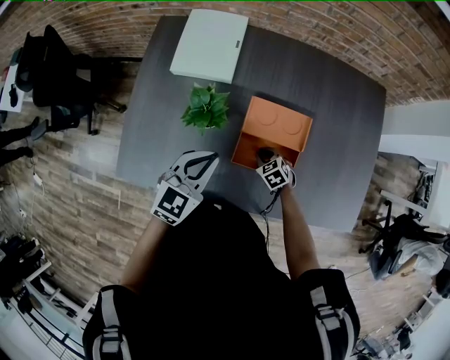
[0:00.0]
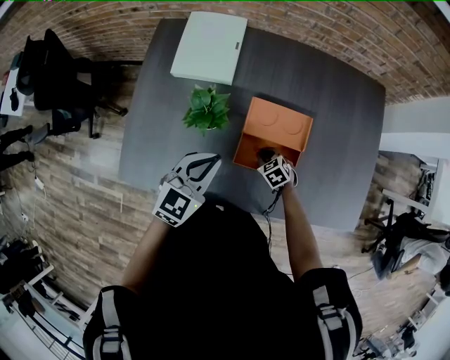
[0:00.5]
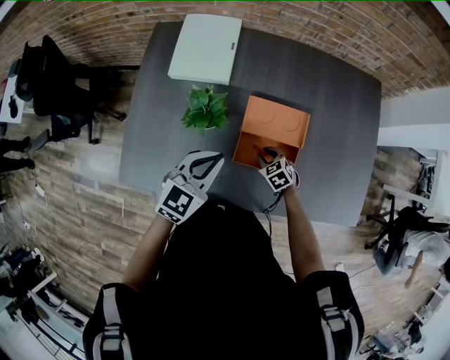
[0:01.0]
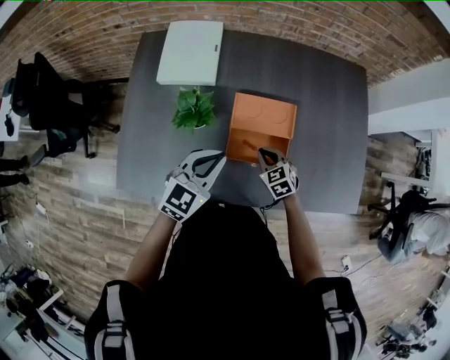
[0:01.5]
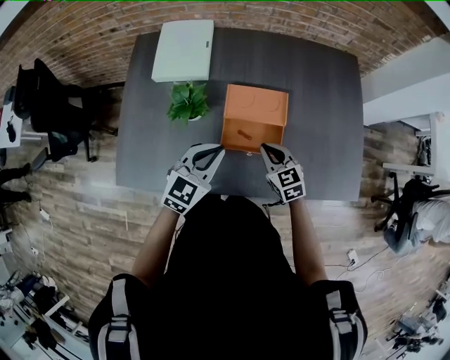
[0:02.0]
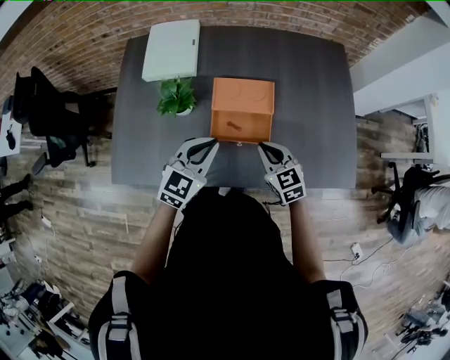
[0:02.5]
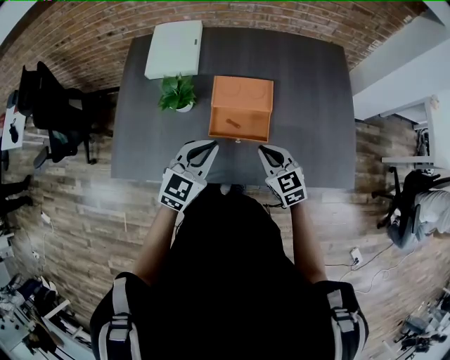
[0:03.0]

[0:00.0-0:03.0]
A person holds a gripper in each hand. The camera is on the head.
0:00.0 to 0:01.5: The left gripper changes place by some 5 cm; the right gripper goes approximately 10 cm upward.
0:01.5 to 0:03.0: The right gripper goes some 15 cm backward, upward and to the right, while the left gripper heads backward and to the right, covering roughly 10 cm.

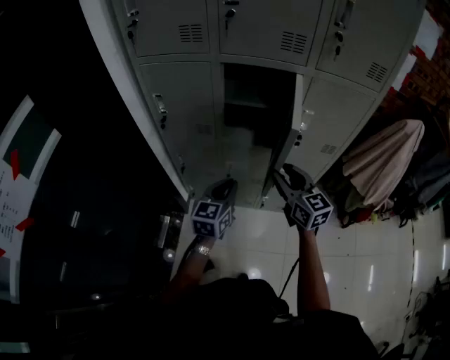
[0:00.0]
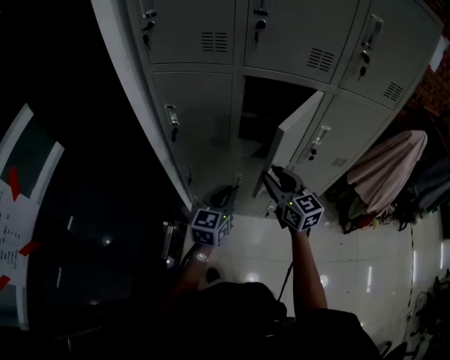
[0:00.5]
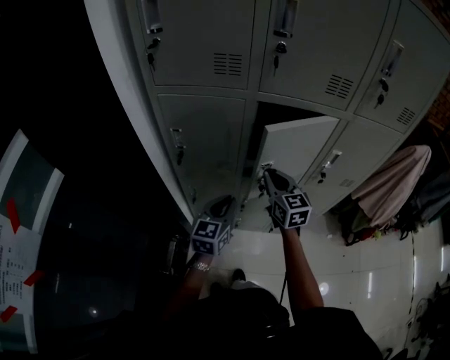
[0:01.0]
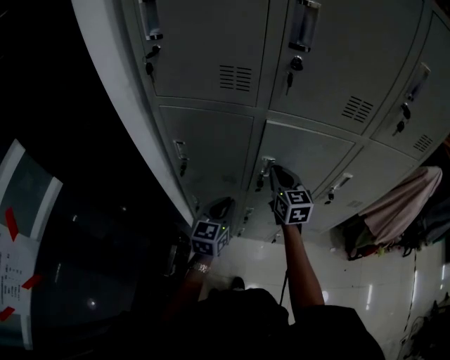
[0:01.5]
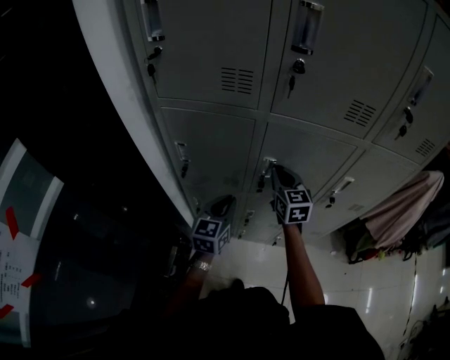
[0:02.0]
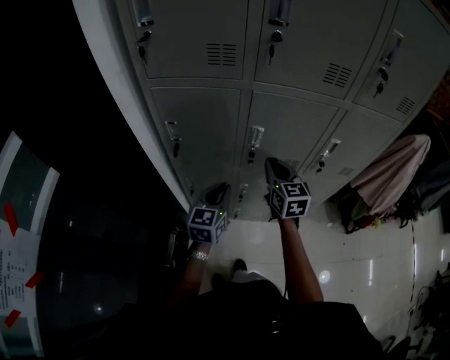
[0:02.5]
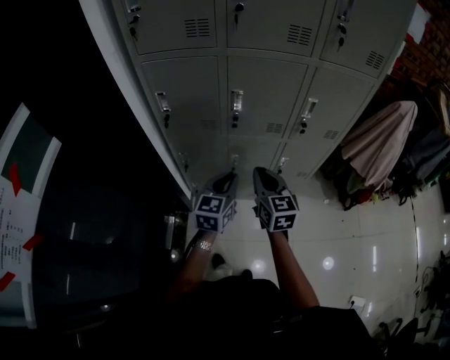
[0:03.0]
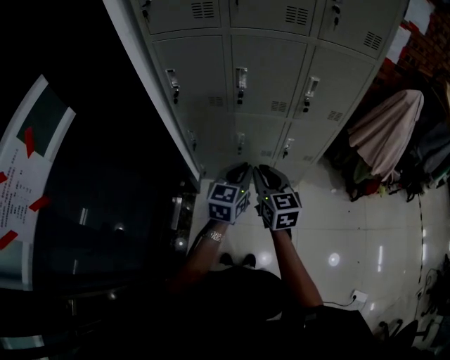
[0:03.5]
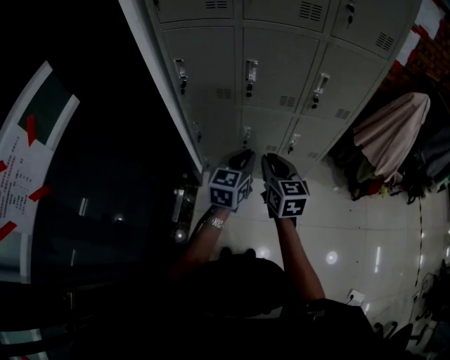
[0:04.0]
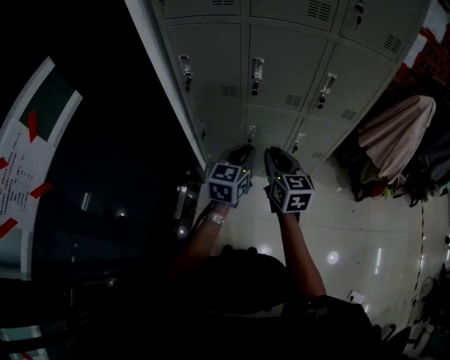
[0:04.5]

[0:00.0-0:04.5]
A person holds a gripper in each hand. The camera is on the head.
0:00.0 to 0:02.0: The grippers both shift forward and to the left by some 25 cm. The right gripper closes up.
0:02.0 to 0:04.5: The right gripper goes roughly 35 cm backward, while the left gripper travels backward and to the right by some 25 cm.

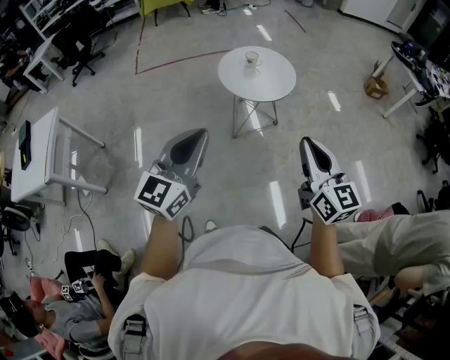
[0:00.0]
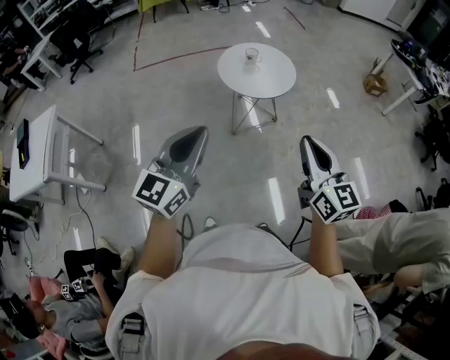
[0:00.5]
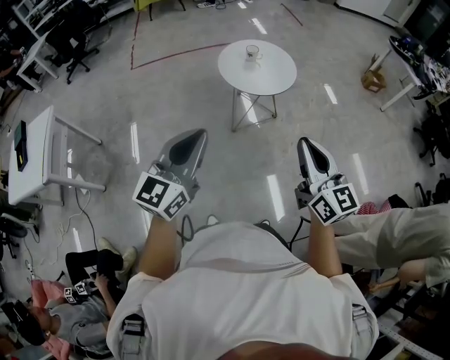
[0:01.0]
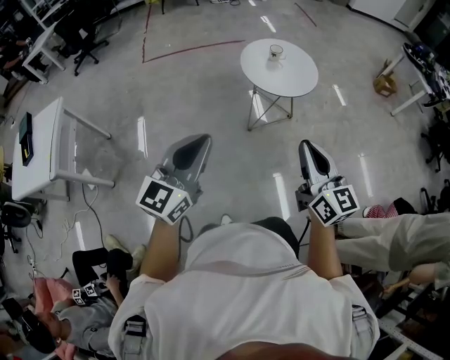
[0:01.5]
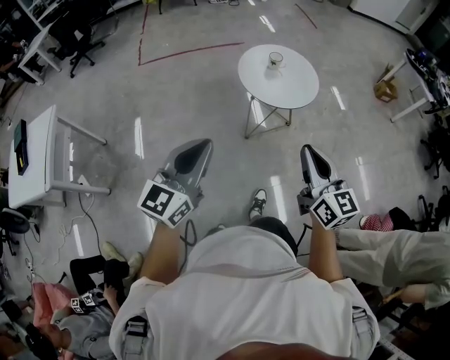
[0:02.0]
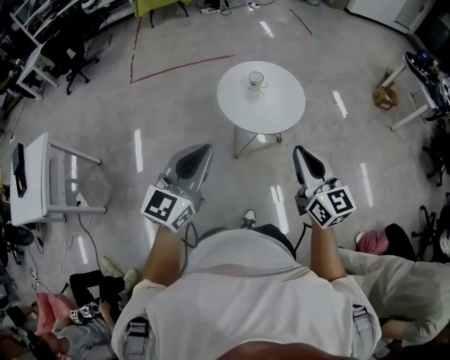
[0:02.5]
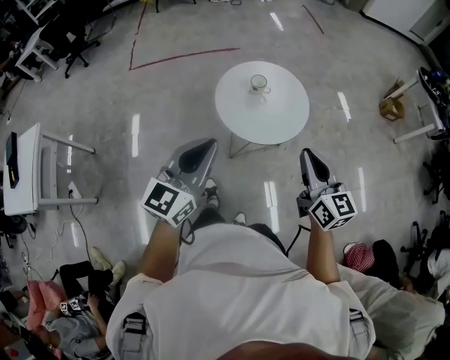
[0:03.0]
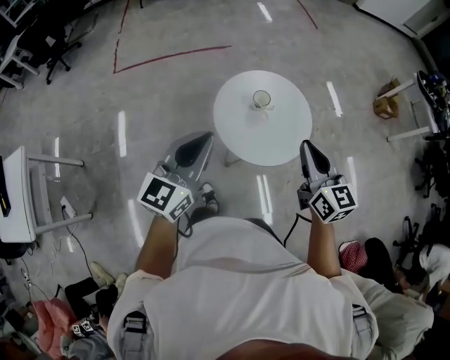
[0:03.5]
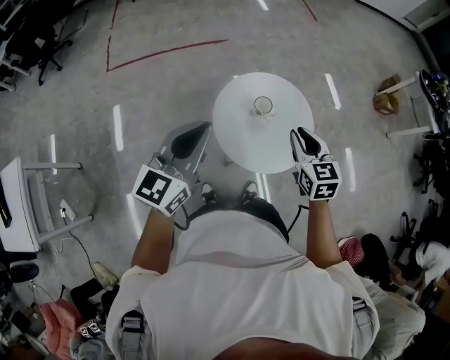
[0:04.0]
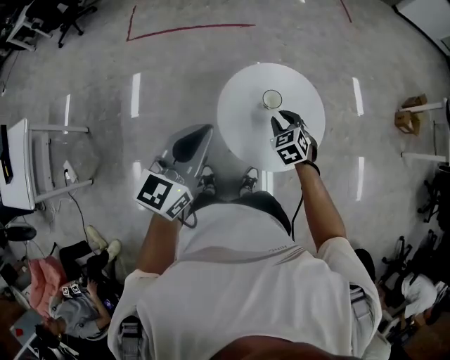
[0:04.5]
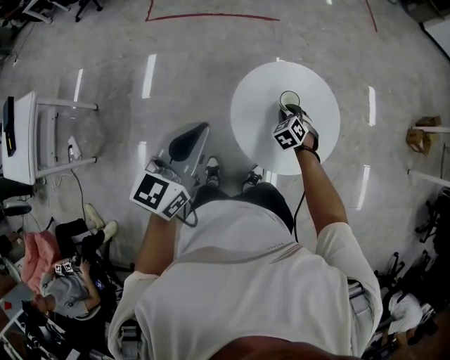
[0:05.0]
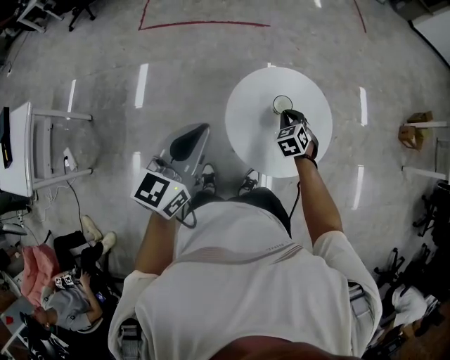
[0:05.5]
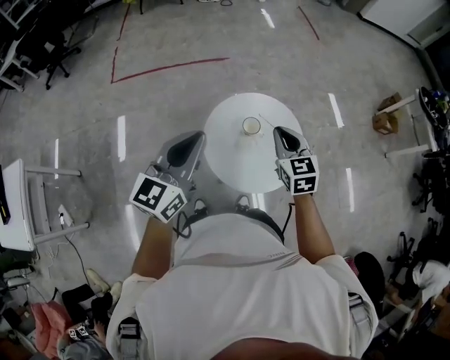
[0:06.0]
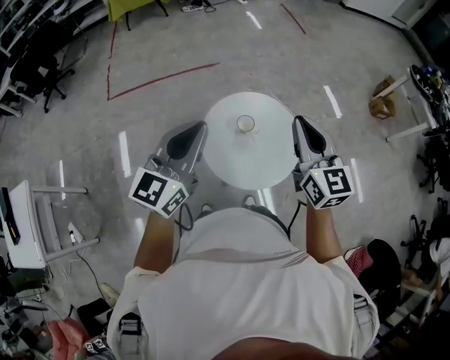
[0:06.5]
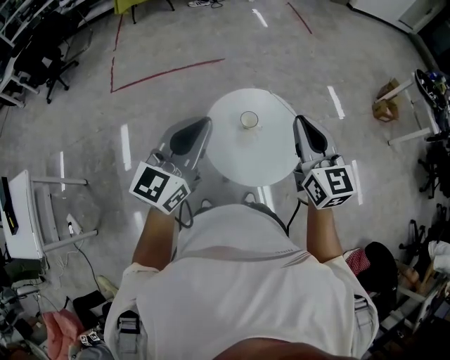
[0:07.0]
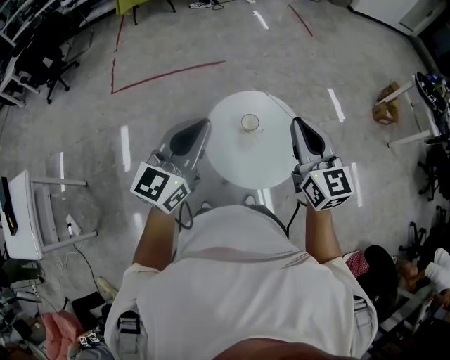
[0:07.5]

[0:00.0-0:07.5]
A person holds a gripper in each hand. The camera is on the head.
0:00.0 to 0:02.0: Both grippers move to the left and forward, approximately 20 cm.
0:02.0 to 0:04.0: The pair of grippers is taken forward, about 60 cm. The right gripper turns by some 30 degrees.
0:04.0 to 0:05.5: The left gripper travels downward by about 5 cm; the right gripper moves downward and forward, approximately 25 cm, and changes its angle by approximately 40 degrees.
0:05.5 to 0:07.5: The right gripper travels upward by some 35 cm, and points its fingers about 50 degrees further upward, while the left gripper travels upward and to the right by approximately 15 cm, and rotates some 20 degrees.

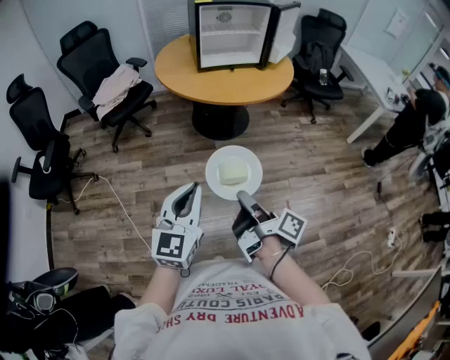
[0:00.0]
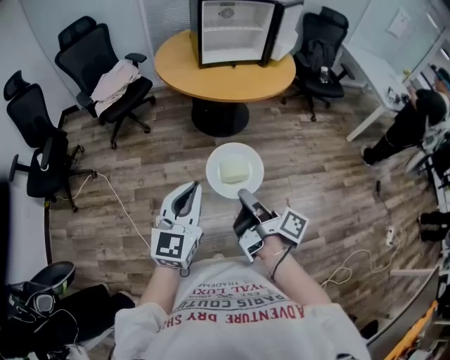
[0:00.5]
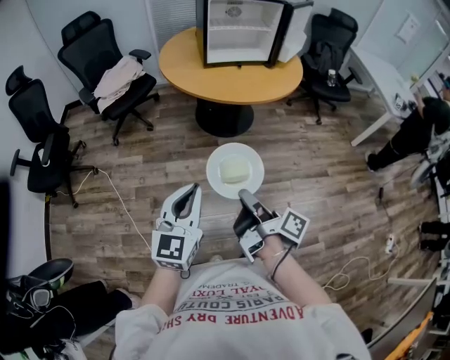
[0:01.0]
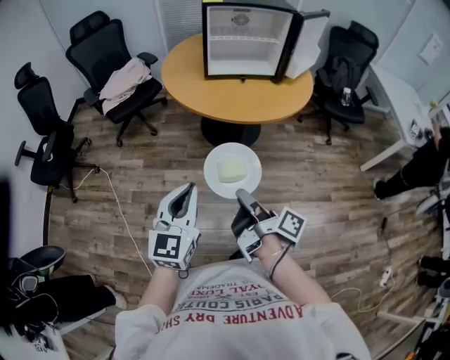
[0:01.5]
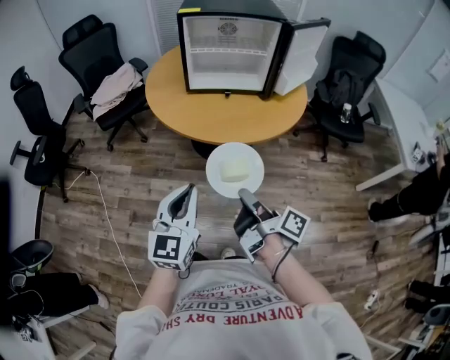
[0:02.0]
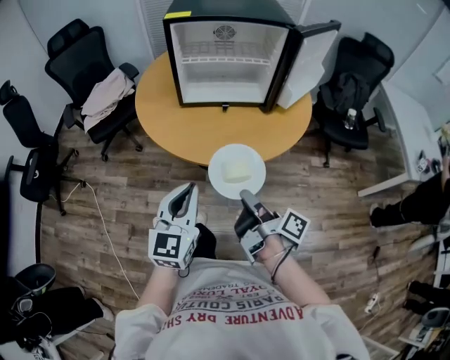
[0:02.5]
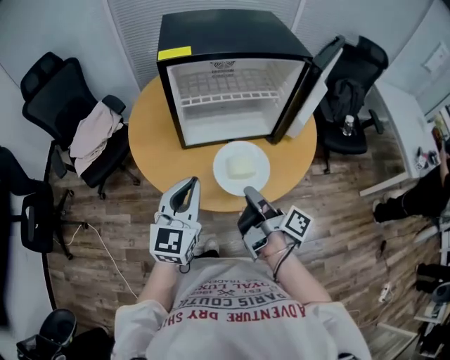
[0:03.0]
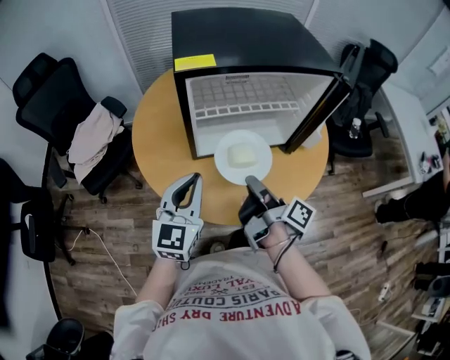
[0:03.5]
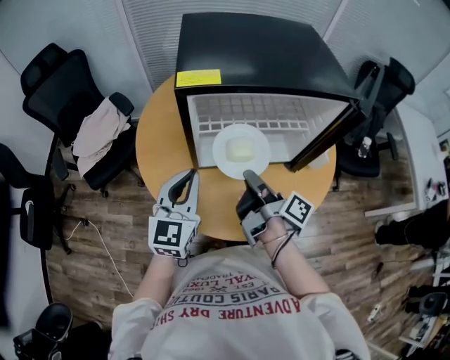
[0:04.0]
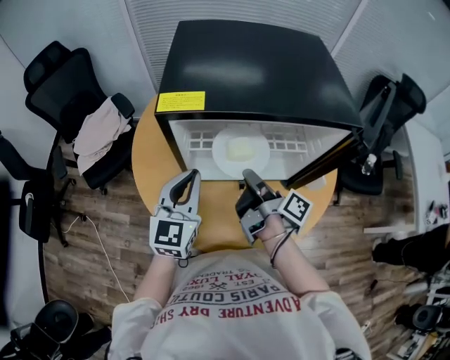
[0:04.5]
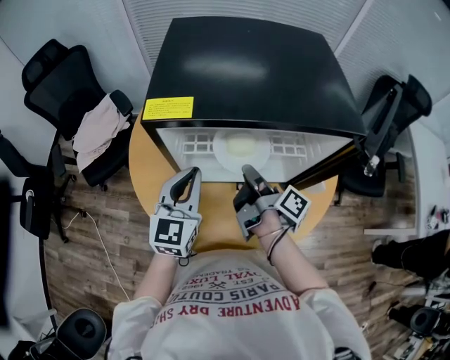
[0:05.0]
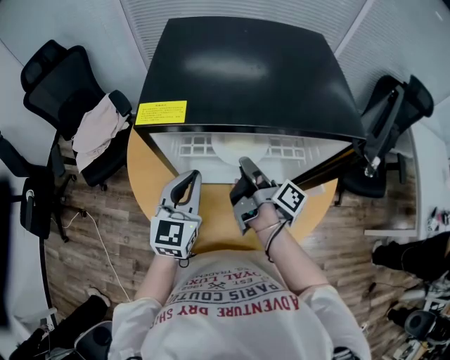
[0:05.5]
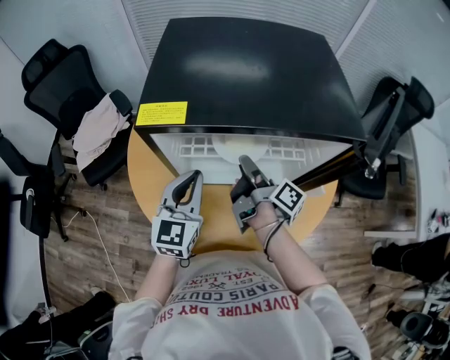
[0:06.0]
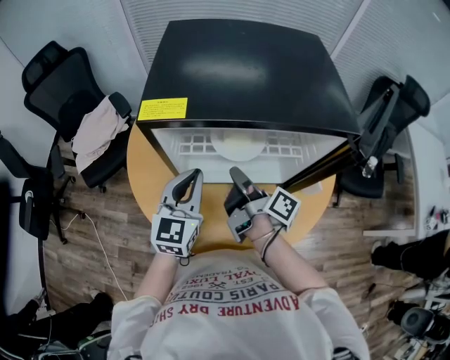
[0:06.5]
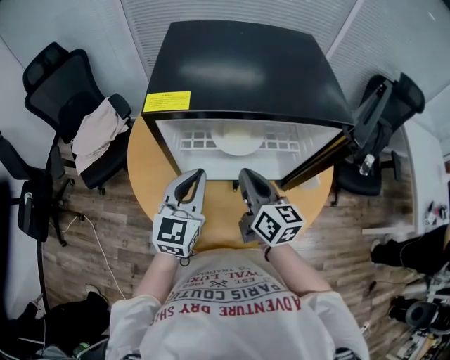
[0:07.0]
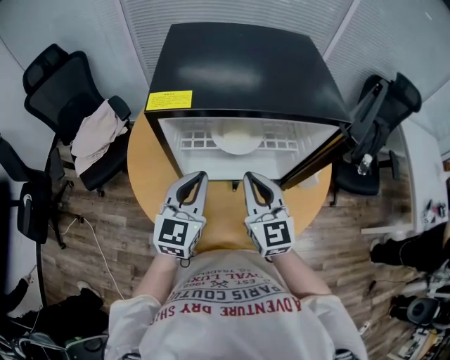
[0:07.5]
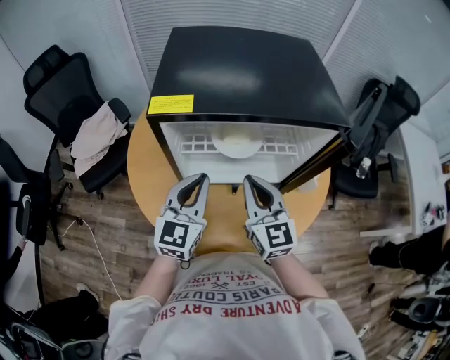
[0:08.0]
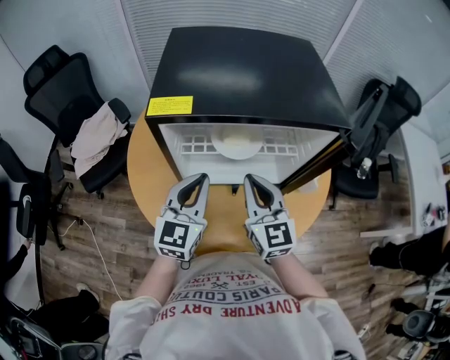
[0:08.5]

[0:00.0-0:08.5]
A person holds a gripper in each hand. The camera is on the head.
0:00.0 to 0:02.0: The left gripper moves approximately 30 cm.
0:02.0 to 0:04.0: The left gripper changes place by roughly 50 cm.
0:04.0 to 0:06.5: The left gripper changes place by approximately 10 cm.

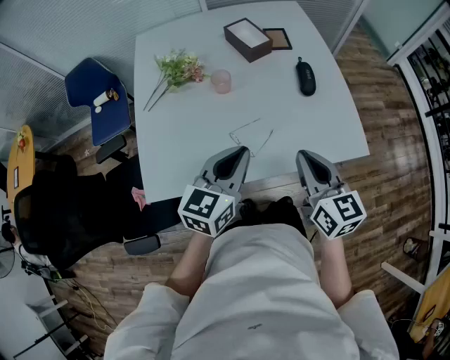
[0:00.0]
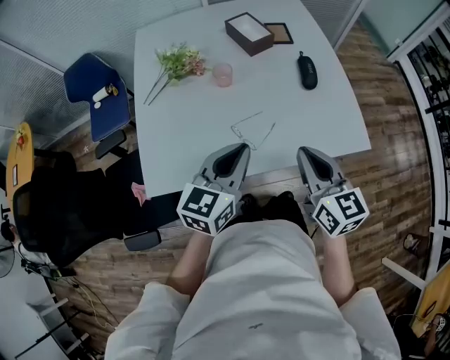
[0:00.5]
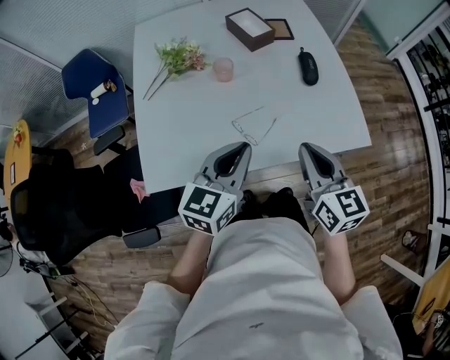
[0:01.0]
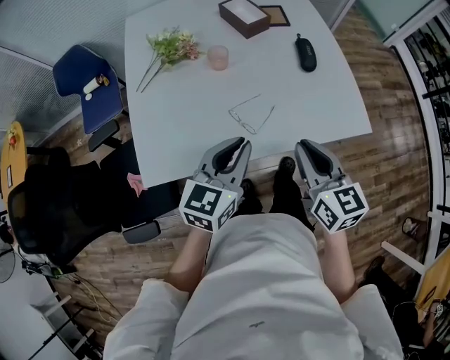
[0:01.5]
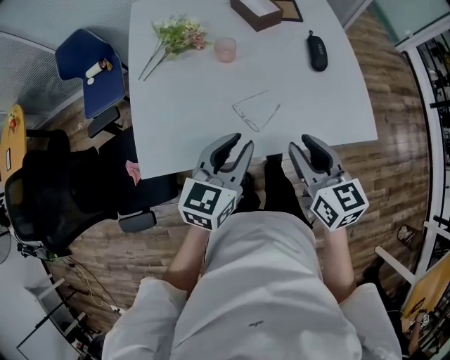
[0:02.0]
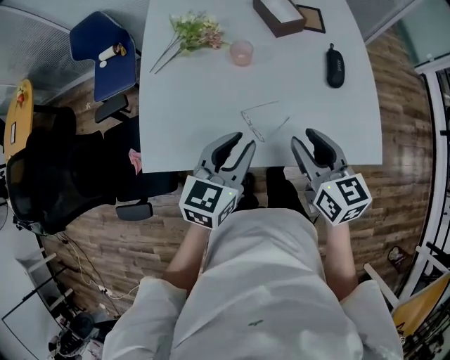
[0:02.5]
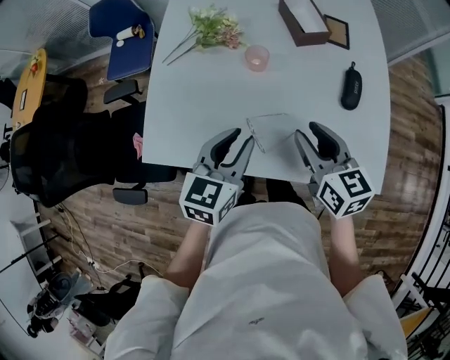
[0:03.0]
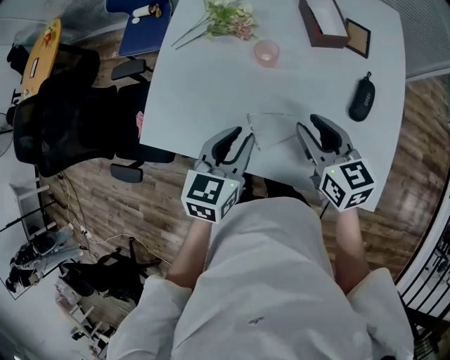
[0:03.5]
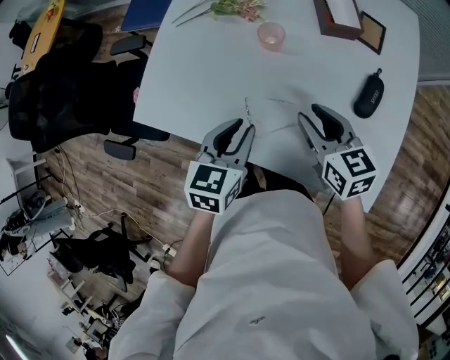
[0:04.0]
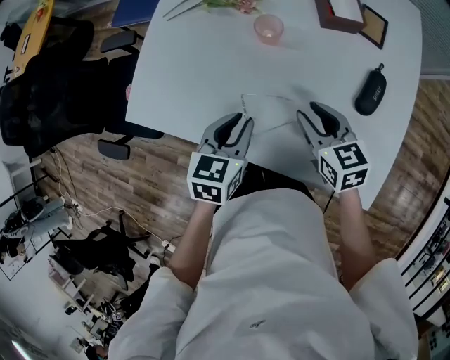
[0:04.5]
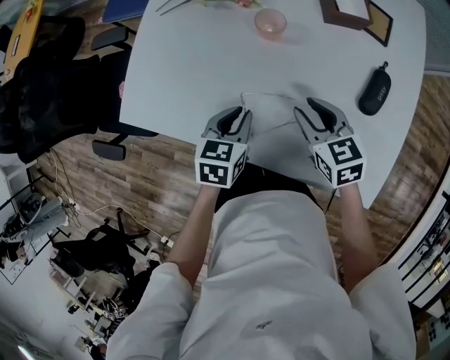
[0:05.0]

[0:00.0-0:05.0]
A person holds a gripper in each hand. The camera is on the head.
0:00.0 to 0:02.5: The right gripper ends up about 5 cm from where it was, and opens up.
0:02.5 to 0:05.0: Both grippers travel together downward, some 15 cm. The right gripper rotates roughly 40 degrees, while the left gripper rotates approximately 40 degrees.
